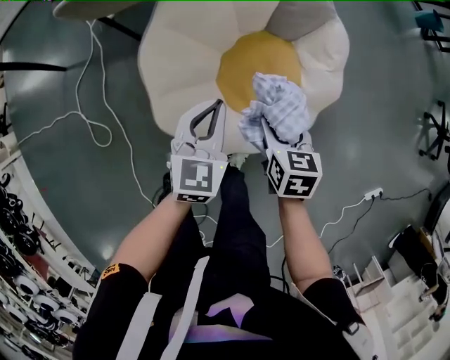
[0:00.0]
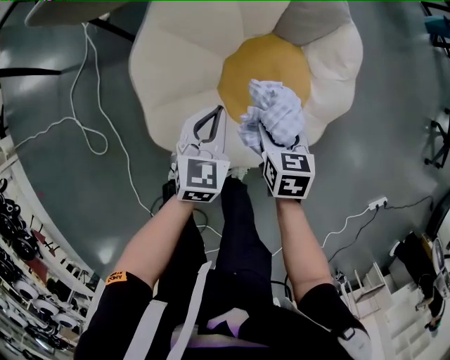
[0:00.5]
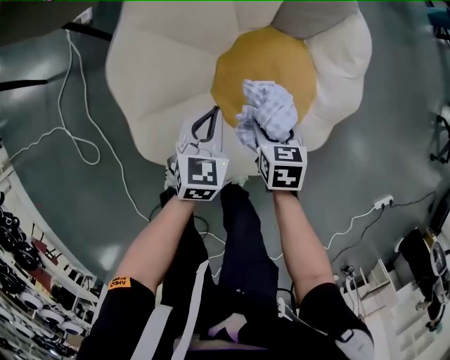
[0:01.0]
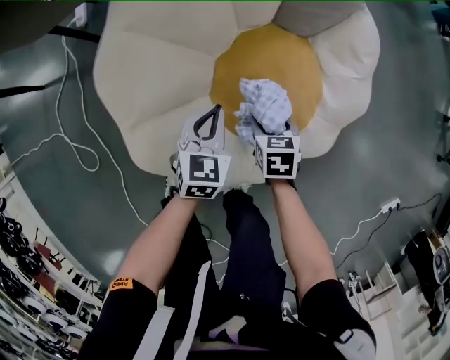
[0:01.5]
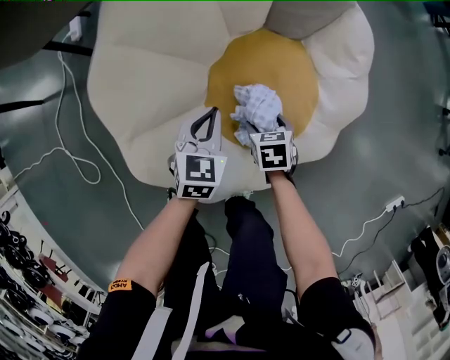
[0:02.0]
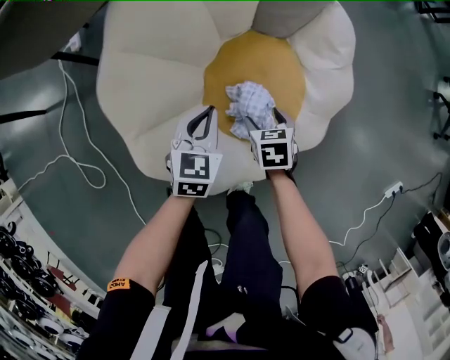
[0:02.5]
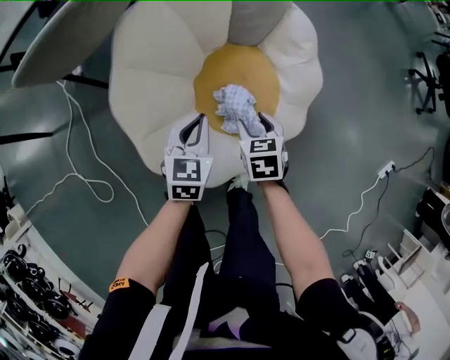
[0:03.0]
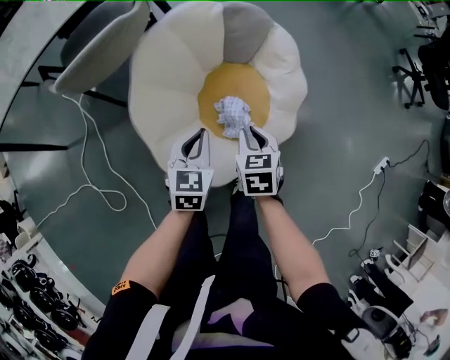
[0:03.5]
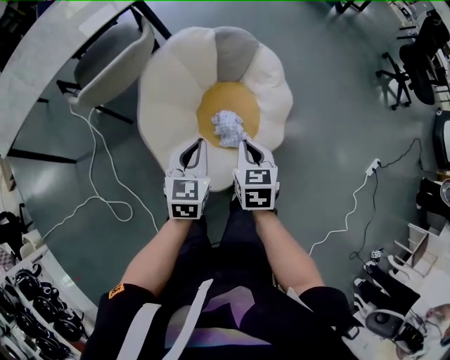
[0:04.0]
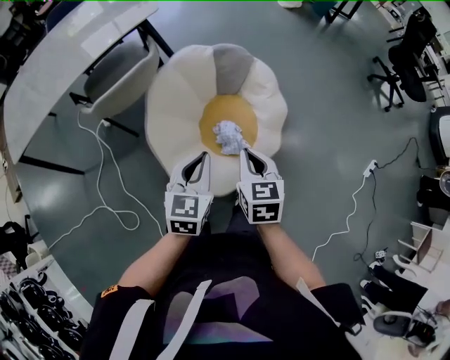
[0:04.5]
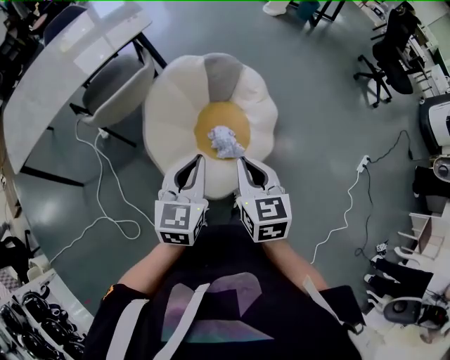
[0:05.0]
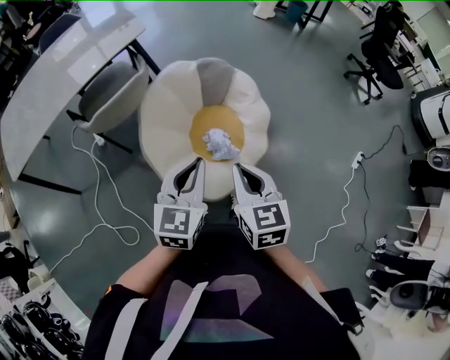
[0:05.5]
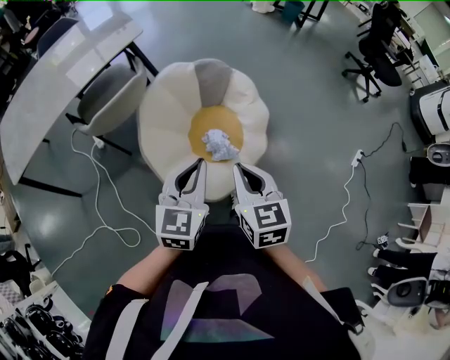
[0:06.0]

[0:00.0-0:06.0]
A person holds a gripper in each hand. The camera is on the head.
0:00.0 to 0:02.0: Both grippers travel together downward, some 30 cm.
0:02.0 to 0:04.0: The two grippers go about 40 cm upward. The right gripper changes its angle by roughly 30 degrees, and closes.
0:04.0 to 0:06.0: Both grippers move upward and backward, some 25 cm.

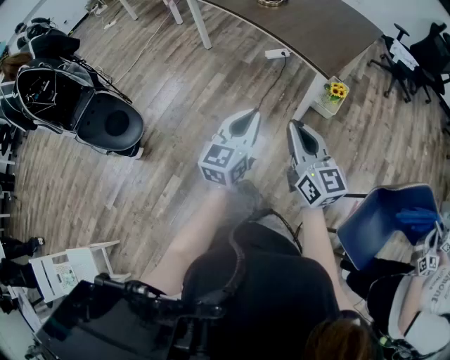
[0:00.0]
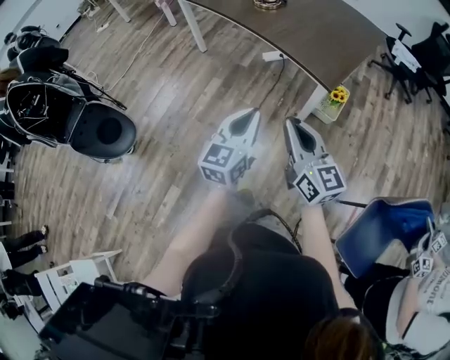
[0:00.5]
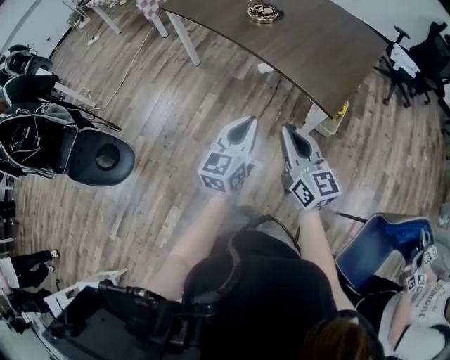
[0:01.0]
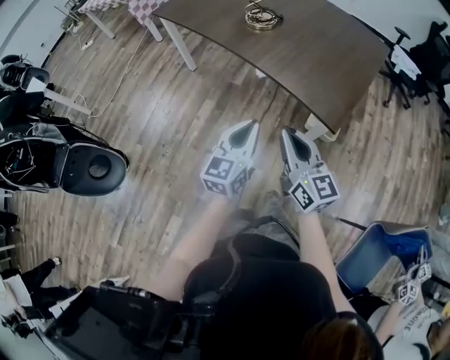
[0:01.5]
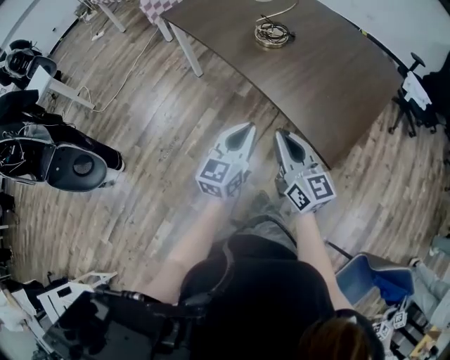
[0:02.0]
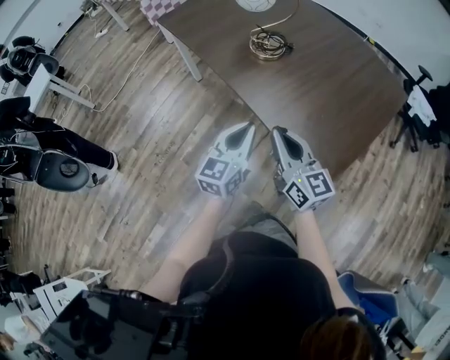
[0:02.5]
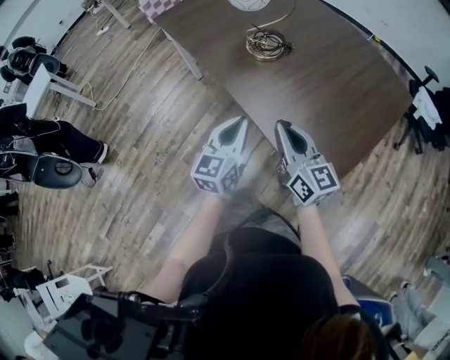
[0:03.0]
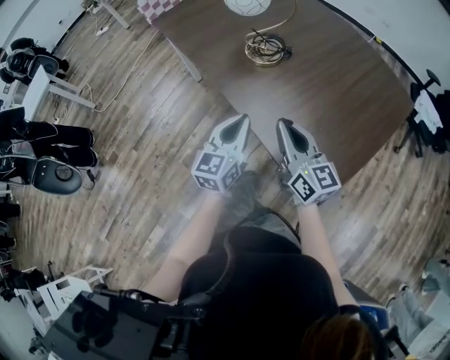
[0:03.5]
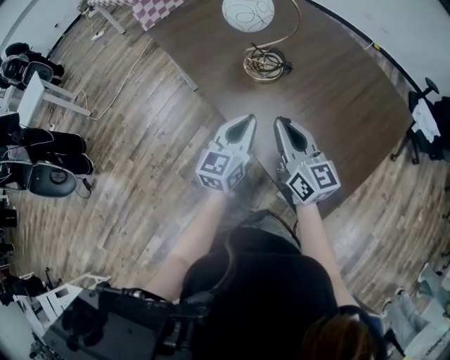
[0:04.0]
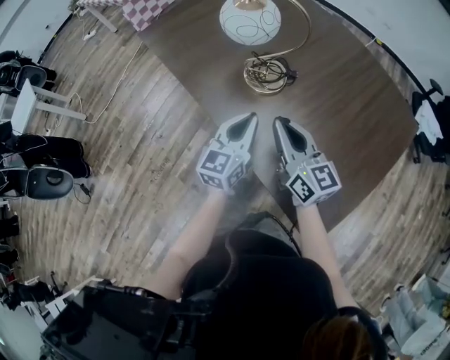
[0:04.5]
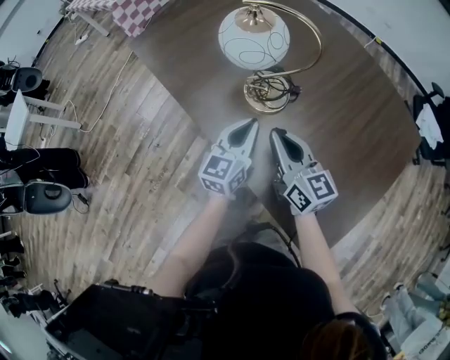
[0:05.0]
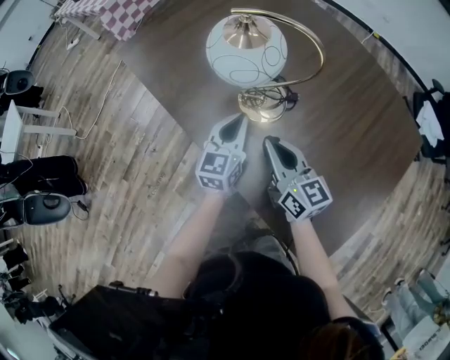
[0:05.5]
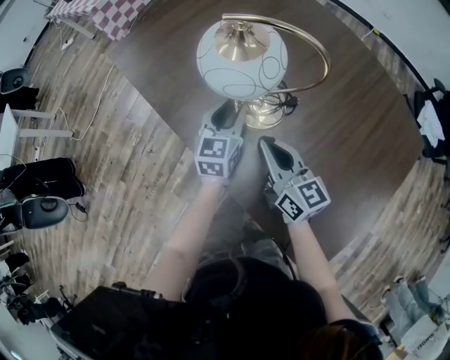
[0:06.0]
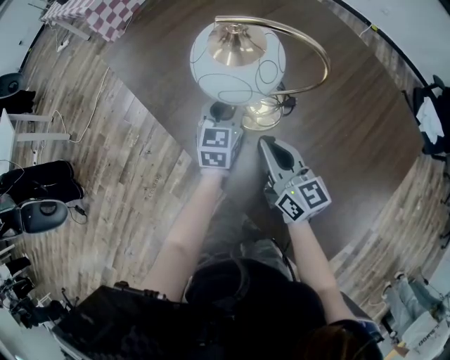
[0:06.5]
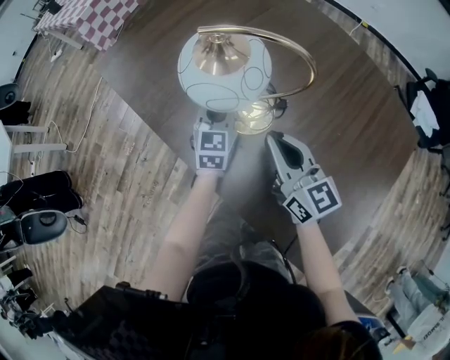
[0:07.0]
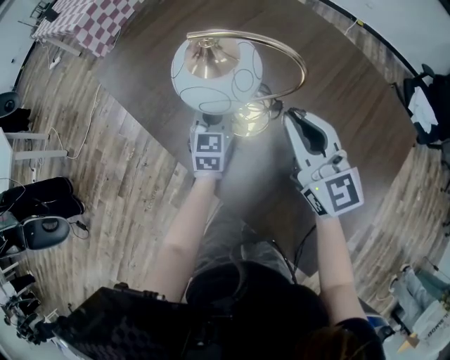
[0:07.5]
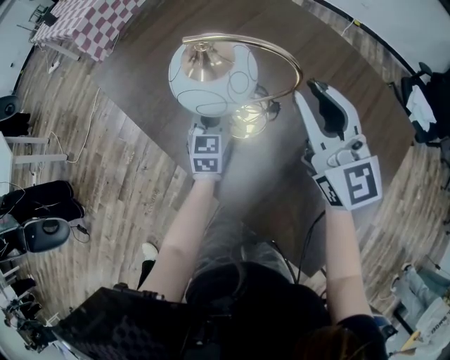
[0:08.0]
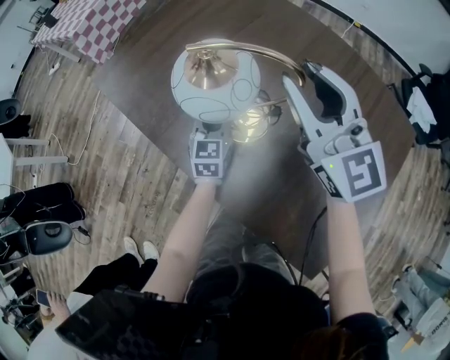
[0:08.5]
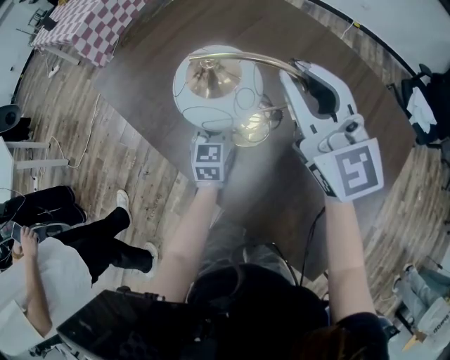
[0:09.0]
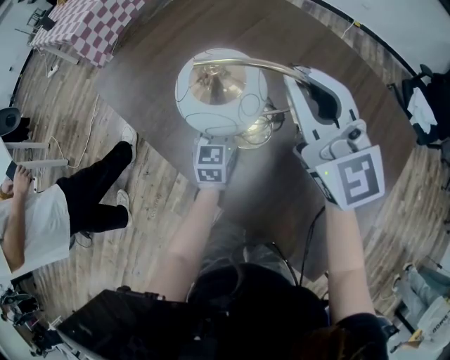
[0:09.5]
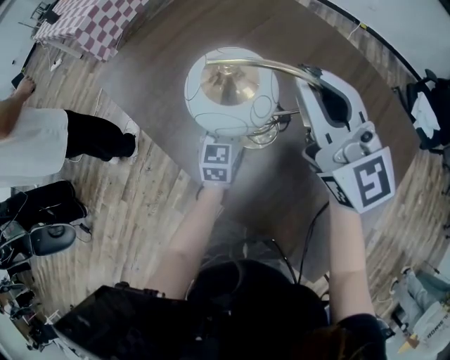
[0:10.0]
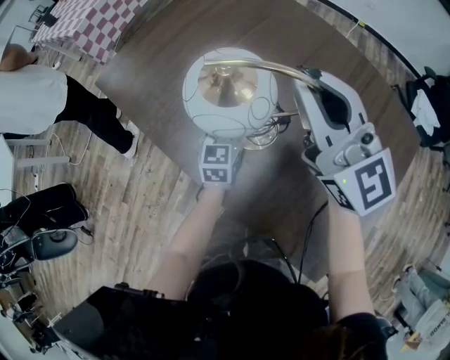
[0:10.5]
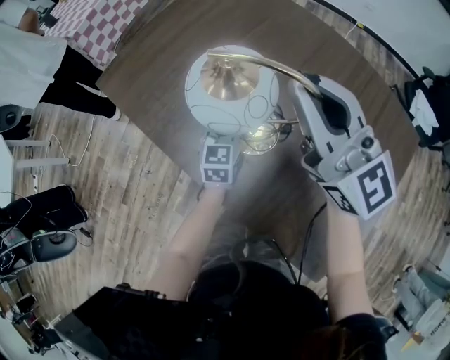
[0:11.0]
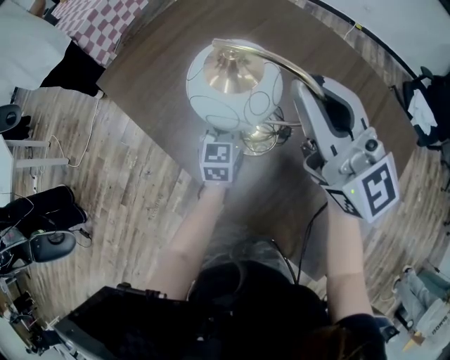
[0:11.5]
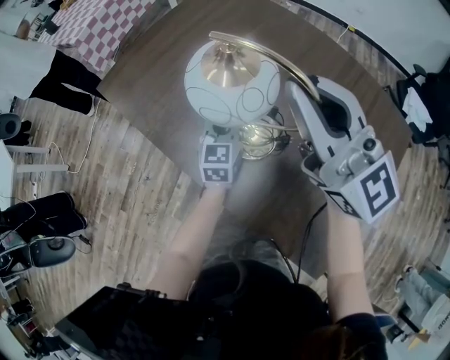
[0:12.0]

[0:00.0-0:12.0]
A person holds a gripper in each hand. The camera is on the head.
0:00.0 to 0:02.0: The grippers both shift forward by about 35 cm.
0:02.0 to 0:04.0: Both grippers move forward, approximately 20 cm.
0:04.0 to 0:06.0: The right gripper travels forward and downward by about 15 cm; the left gripper travels forward and downward by about 25 cm, and opens up.
0:06.0 to 0:08.0: The left gripper closes up. The right gripper shifts approximately 20 cm upward, to the right and forward, turns by roughly 30 degrees, and opens.
0:08.0 to 0:10.0: The right gripper moves about 10 cm, and closes.
0:10.0 to 0:12.0: The right gripper shifts about 5 cm backward.

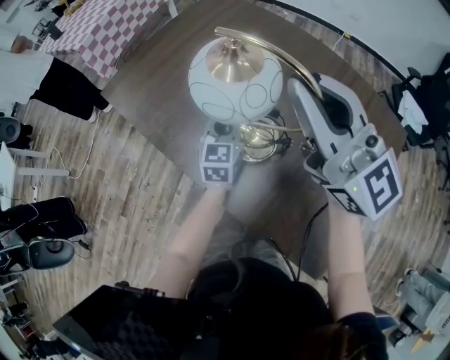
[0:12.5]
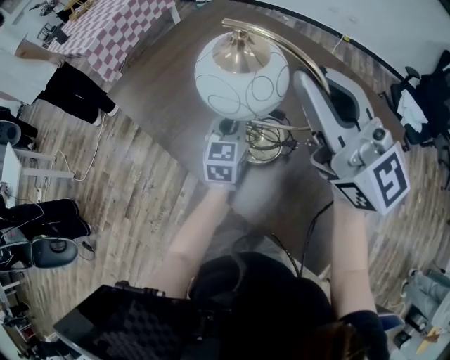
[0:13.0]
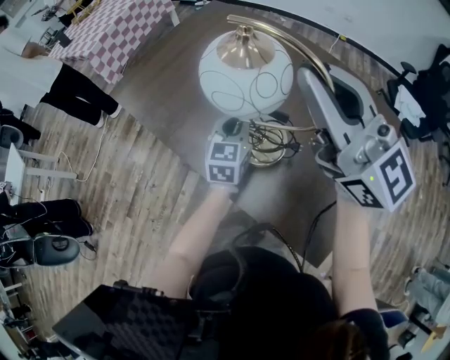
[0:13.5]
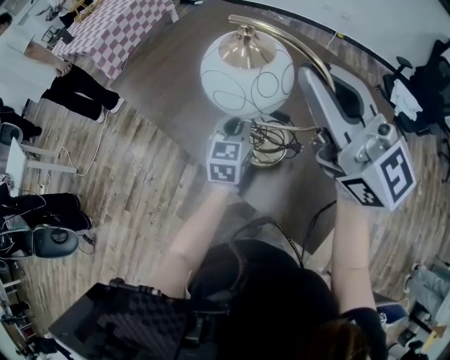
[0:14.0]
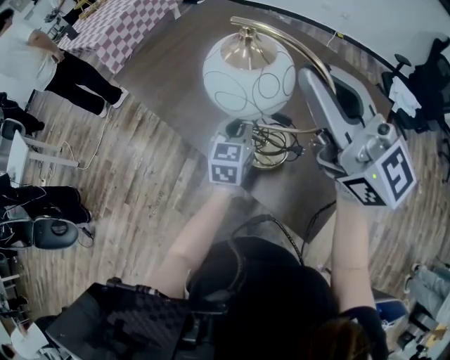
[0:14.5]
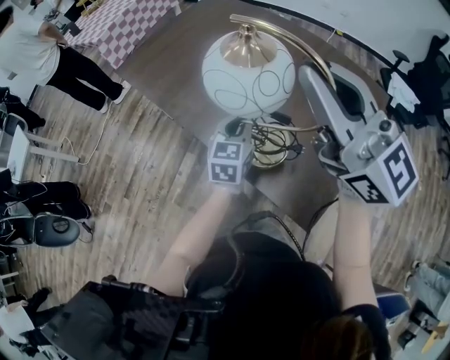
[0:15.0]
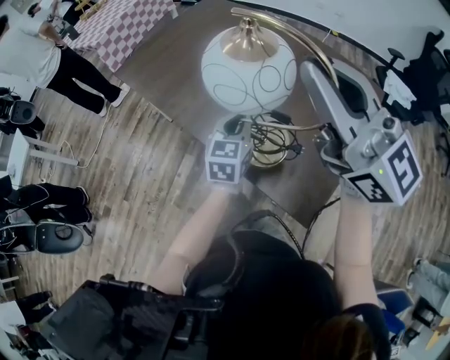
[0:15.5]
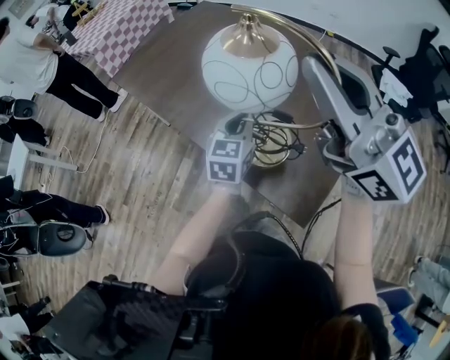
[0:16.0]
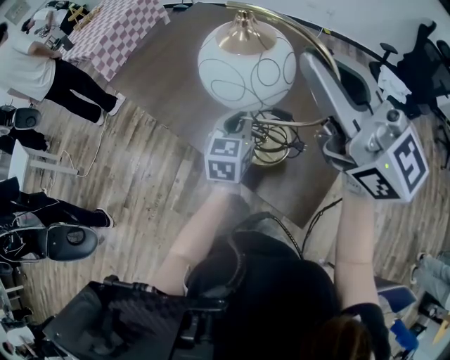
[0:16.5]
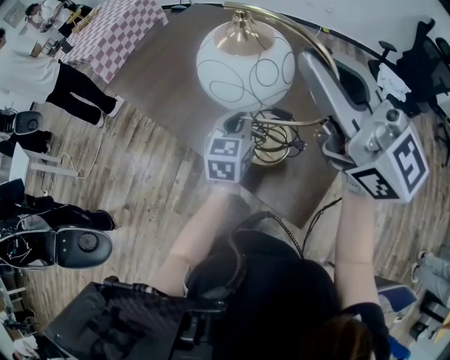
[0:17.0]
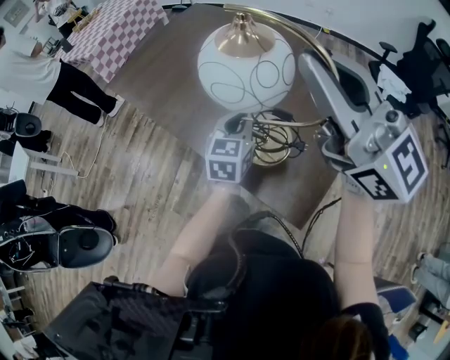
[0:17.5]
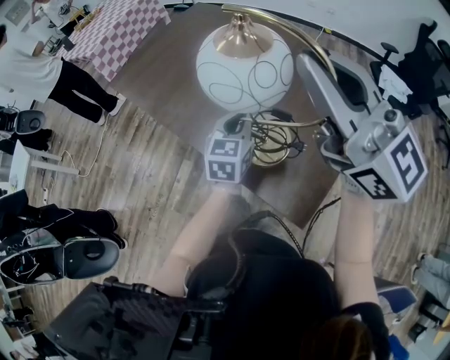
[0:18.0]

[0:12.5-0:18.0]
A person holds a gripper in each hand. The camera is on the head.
0:12.5 to 0:14.5: Both grippers travel together backward, roughly 15 cm.
0:14.5 to 0:16.0: The right gripper is displaced backward by roughly 5 cm. Meanwhile the left gripper ends up approximately 5 cm from where it was.
0:16.0 to 0:18.0: Both grippers stay about where they are.

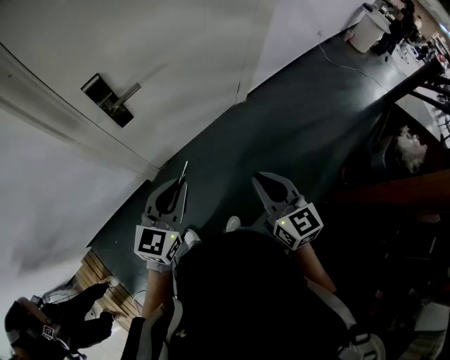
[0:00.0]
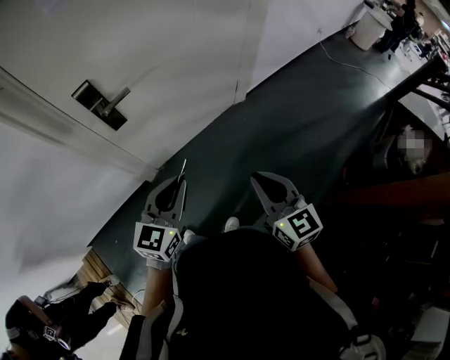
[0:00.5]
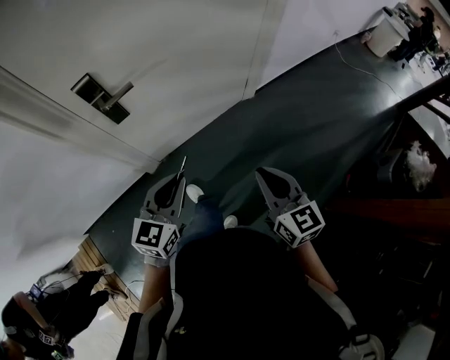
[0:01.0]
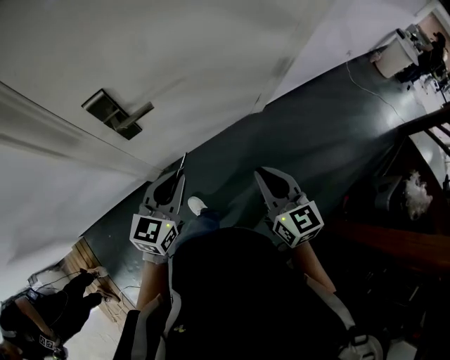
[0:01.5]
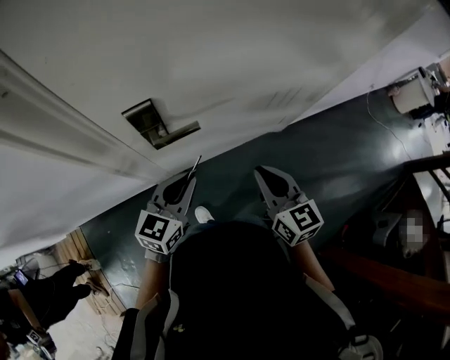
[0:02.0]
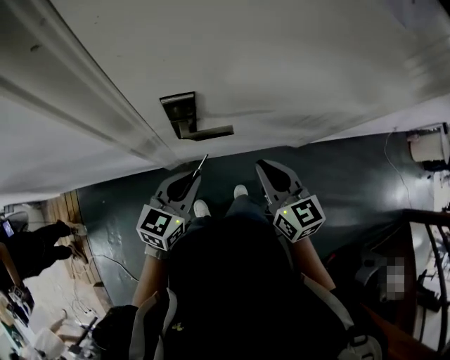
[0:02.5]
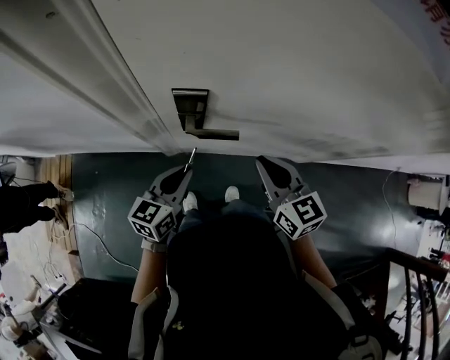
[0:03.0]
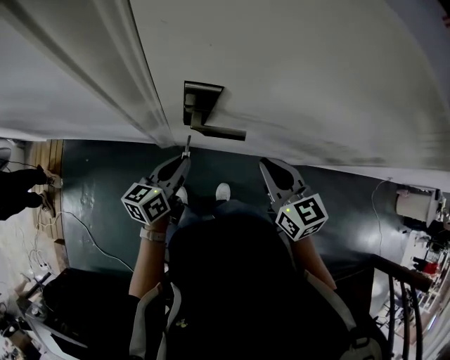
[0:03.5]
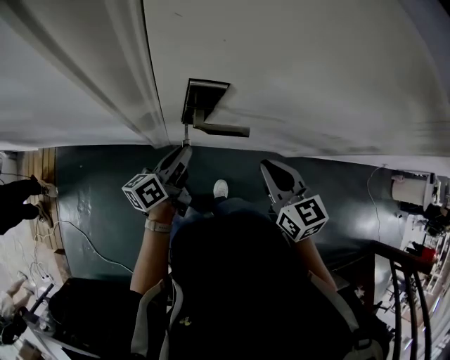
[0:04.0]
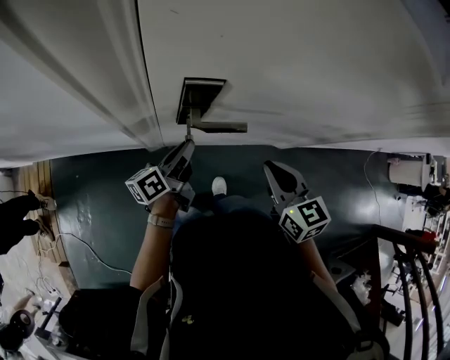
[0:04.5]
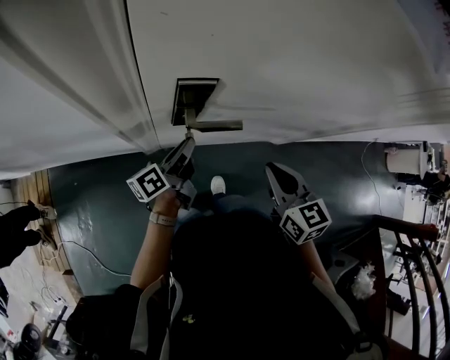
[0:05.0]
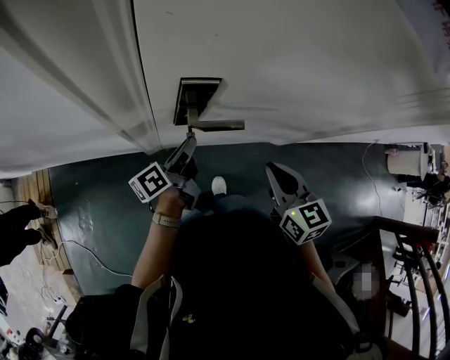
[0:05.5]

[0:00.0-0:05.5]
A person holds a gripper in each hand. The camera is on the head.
0:00.0 to 0:02.0: The two grippers go some 30 cm forward and to the left.
0:02.0 to 0:03.5: The right gripper ends up some 15 cm from where it was, and turns by about 30 degrees. The left gripper ends up roughly 10 cm from where it was, and swivels some 50 degrees.
0:03.5 to 0:05.5: The left gripper is displaced forward by approximately 5 cm, and rotates approximately 40 degrees.
